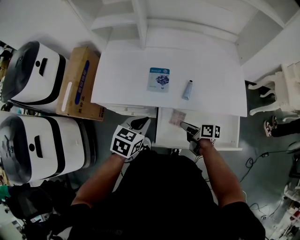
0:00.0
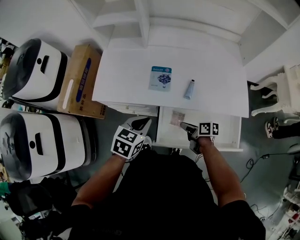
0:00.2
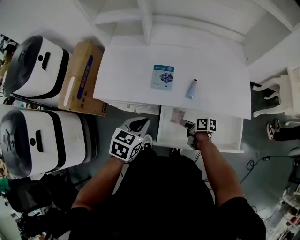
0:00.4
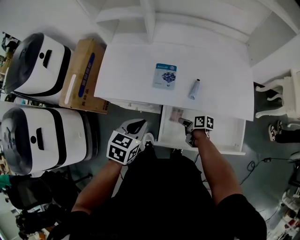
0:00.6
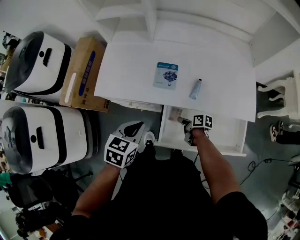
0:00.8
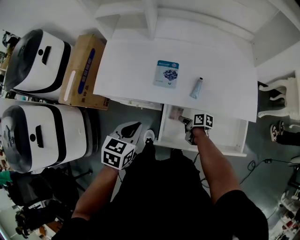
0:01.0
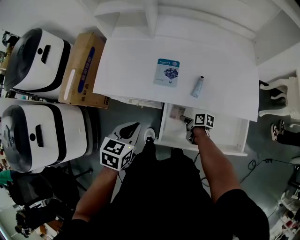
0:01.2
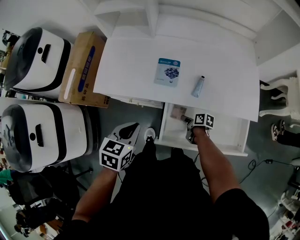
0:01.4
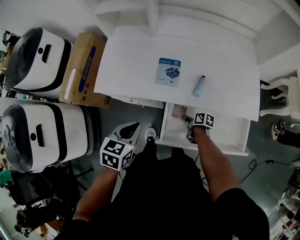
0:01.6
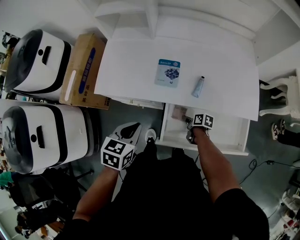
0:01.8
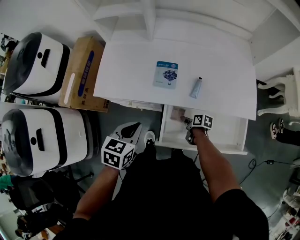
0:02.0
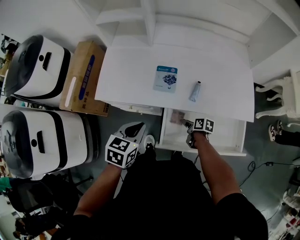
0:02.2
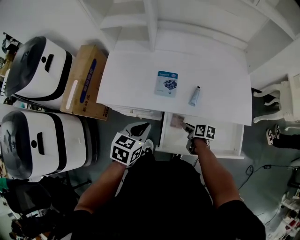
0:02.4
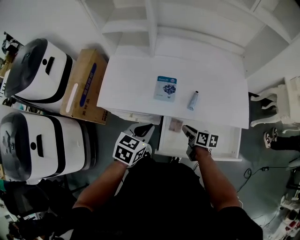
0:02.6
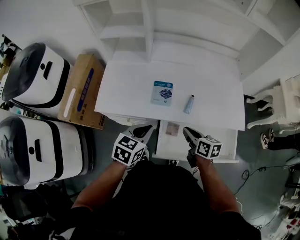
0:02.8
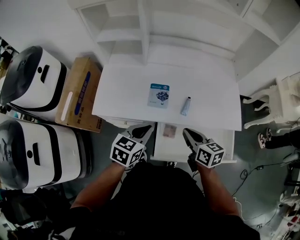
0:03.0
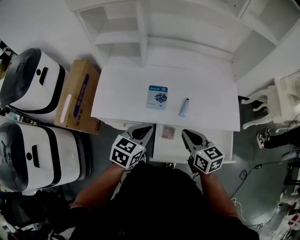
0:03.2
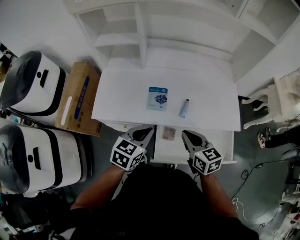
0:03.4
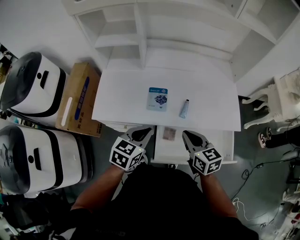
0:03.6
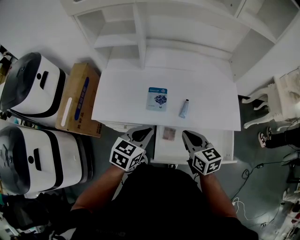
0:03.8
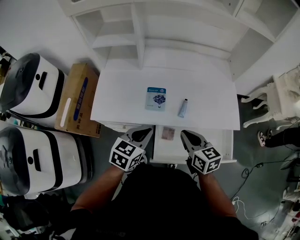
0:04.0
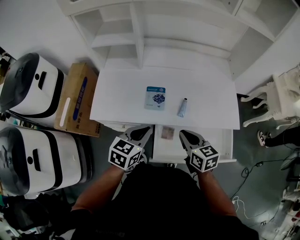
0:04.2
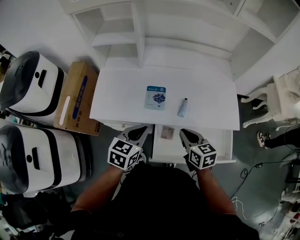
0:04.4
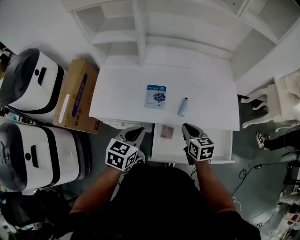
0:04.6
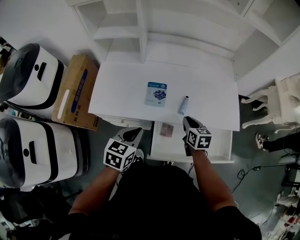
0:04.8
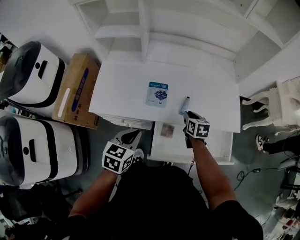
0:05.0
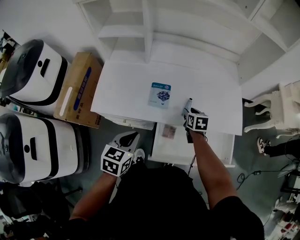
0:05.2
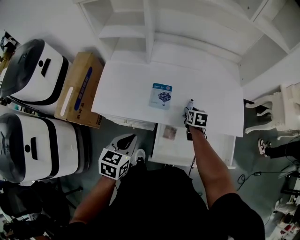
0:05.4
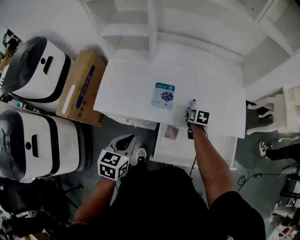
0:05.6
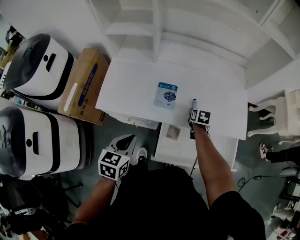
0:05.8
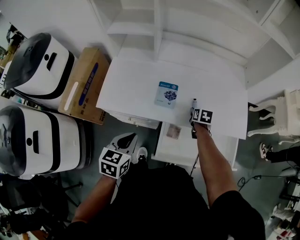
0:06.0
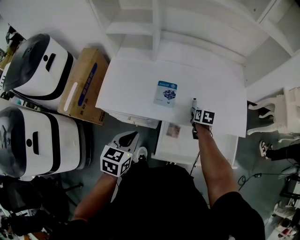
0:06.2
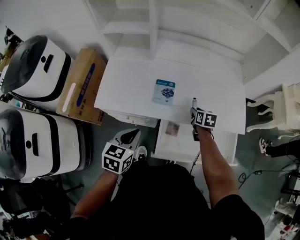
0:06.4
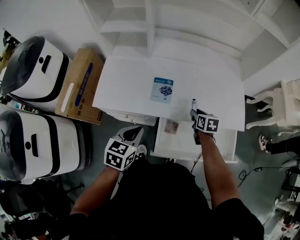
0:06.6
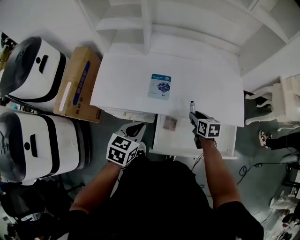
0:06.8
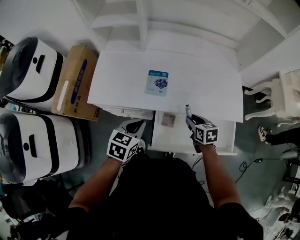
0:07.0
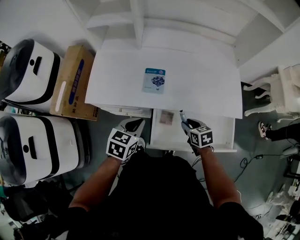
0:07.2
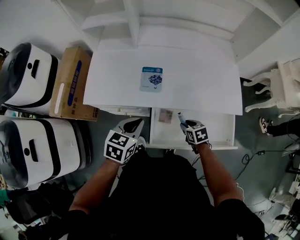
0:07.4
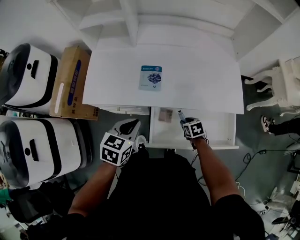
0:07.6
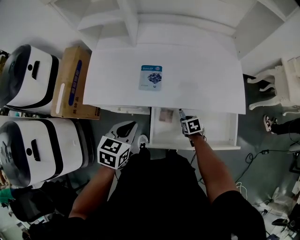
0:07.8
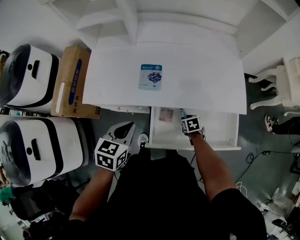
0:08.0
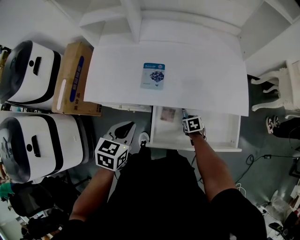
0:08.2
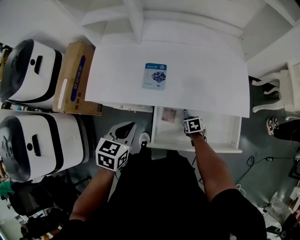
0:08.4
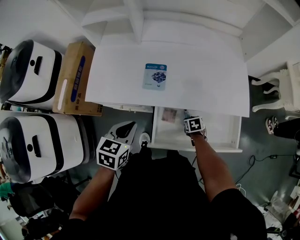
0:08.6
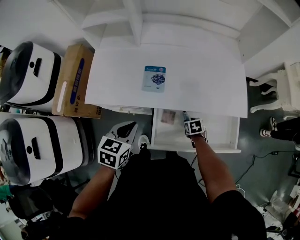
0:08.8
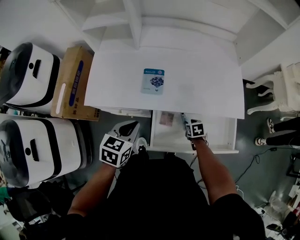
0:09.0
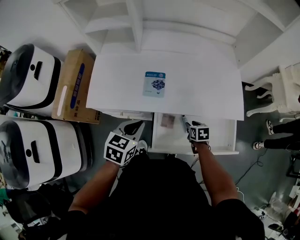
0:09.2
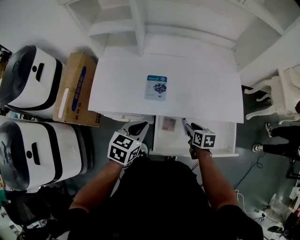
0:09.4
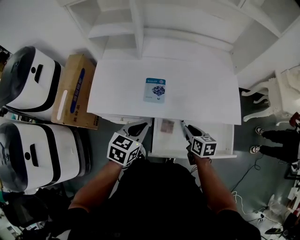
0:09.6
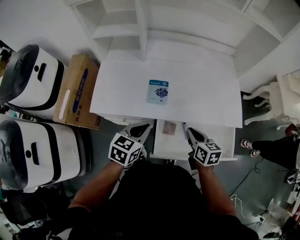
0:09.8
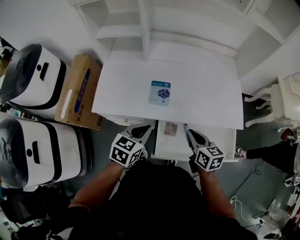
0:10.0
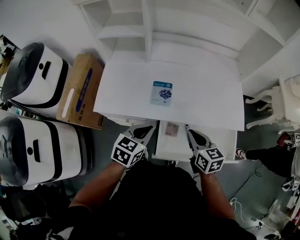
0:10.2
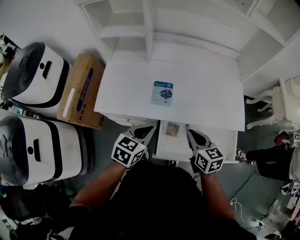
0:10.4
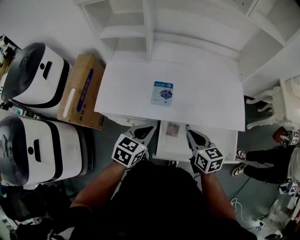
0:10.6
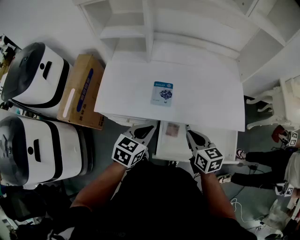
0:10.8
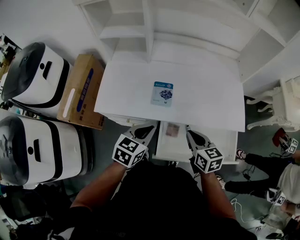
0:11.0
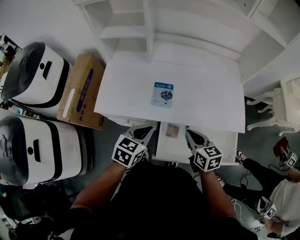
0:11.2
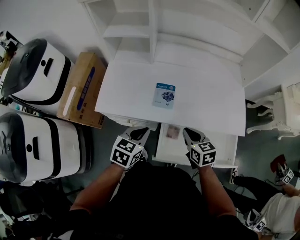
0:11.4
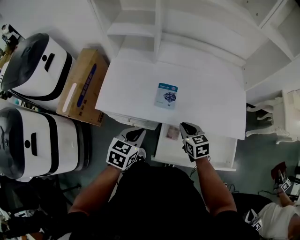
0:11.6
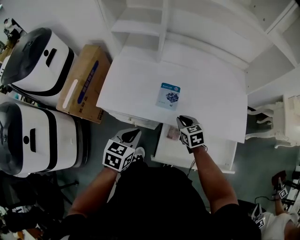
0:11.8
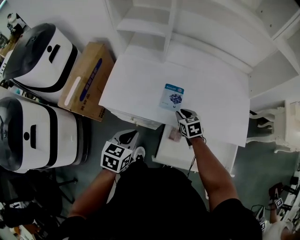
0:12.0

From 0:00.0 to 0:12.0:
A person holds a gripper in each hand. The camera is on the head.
From 0:00.0 to 0:01.6: The left gripper shifts about 5 cm to the left. Meanwhile the right gripper travels downward by about 15 cm.
From 0:01.6 to 0:03.0: The right gripper shifts about 30 cm upward, and changes its angle by some 40 degrees. The left gripper shifts roughly 5 cm to the right.
From 0:03.0 to 0:04.4: The grippers make only small movements.
From 0:04.4 to 0:06.0: The left gripper moves to the left and backward, some 10 cm; the right gripper moves downward and forward, some 25 cm, rotates about 30 degrees, and opens up.
From 0:06.0 to 0:07.6: The right gripper is displaced backward by some 15 cm, and turns by approximately 20 degrees, while the left gripper shifts some 5 cm to the right.
From 0:09.0 to 0:10.4: The right gripper shifts about 25 cm upward, tips its fingers upward by roughly 40 degrees, and closes up.
From 0:10.4 to 0:12.0: The left gripper moves to the left, approximately 10 cm; the right gripper travels forward, downward and to the left by approximately 20 cm, and changes its angle by roughly 30 degrees.

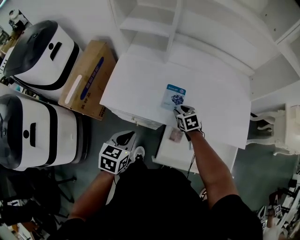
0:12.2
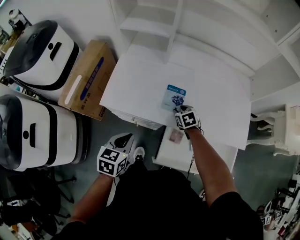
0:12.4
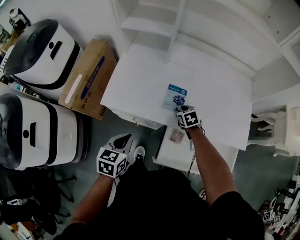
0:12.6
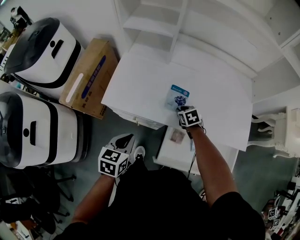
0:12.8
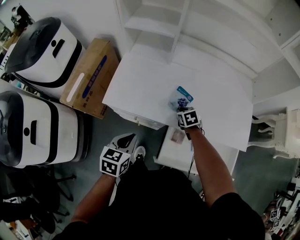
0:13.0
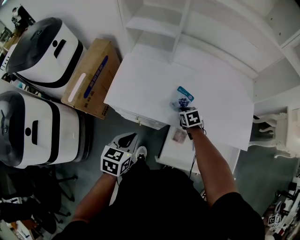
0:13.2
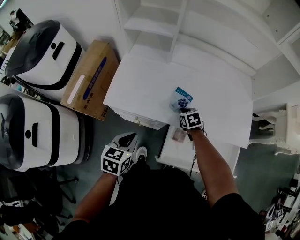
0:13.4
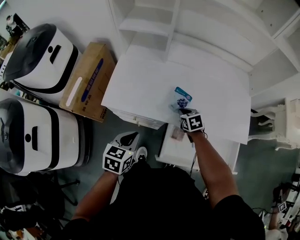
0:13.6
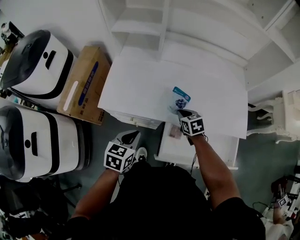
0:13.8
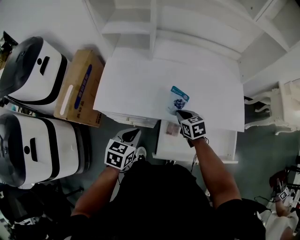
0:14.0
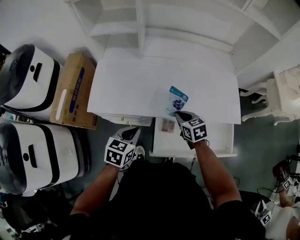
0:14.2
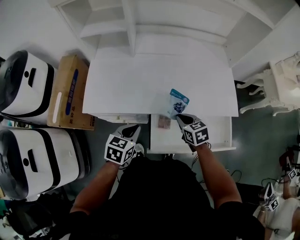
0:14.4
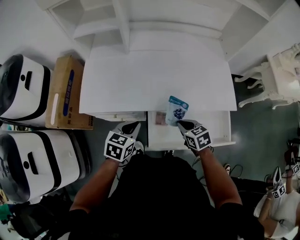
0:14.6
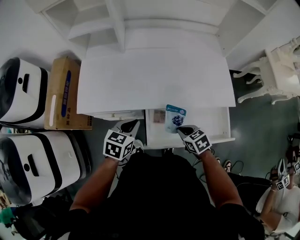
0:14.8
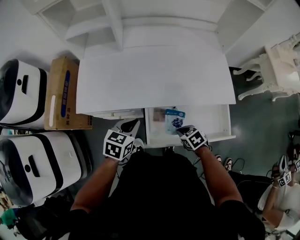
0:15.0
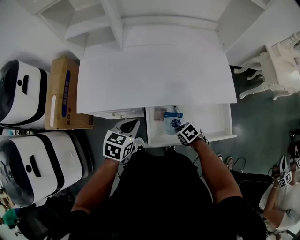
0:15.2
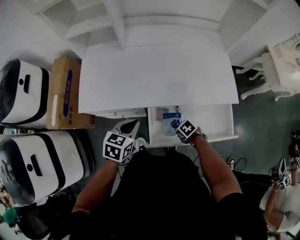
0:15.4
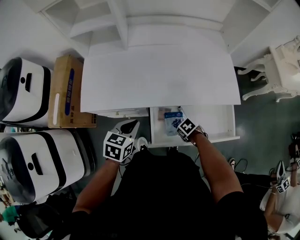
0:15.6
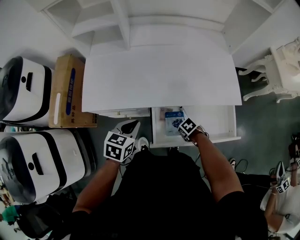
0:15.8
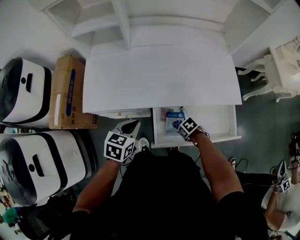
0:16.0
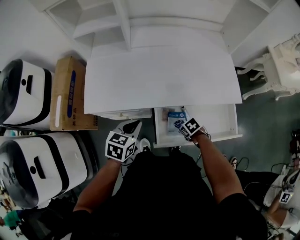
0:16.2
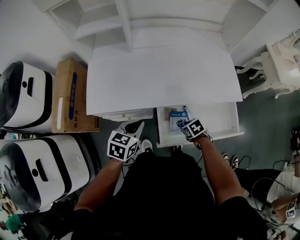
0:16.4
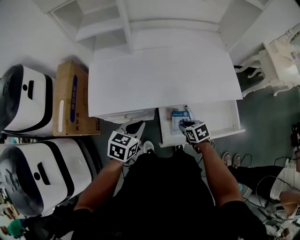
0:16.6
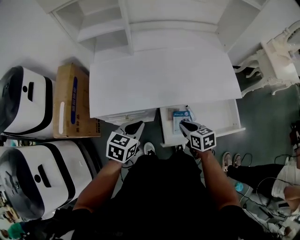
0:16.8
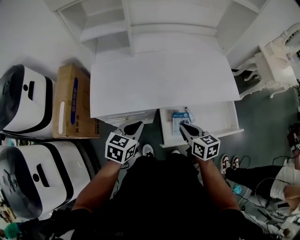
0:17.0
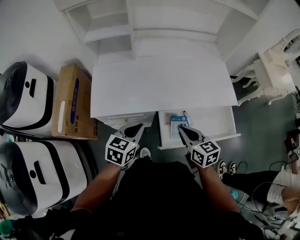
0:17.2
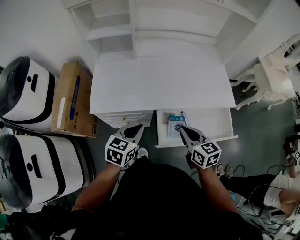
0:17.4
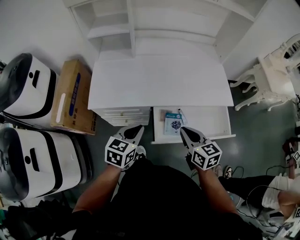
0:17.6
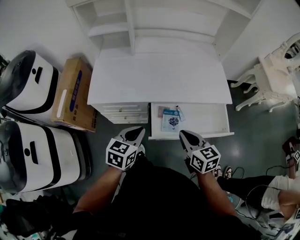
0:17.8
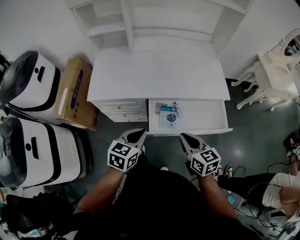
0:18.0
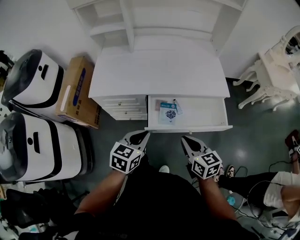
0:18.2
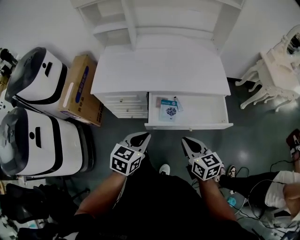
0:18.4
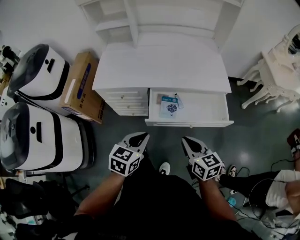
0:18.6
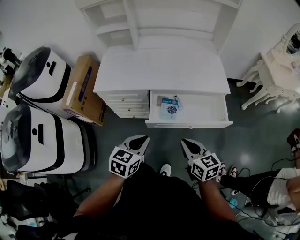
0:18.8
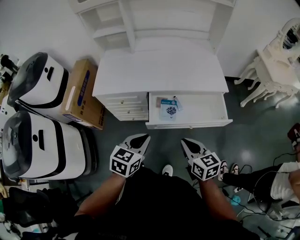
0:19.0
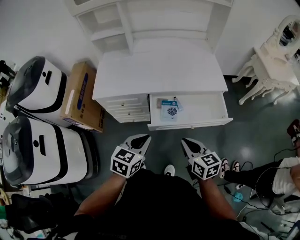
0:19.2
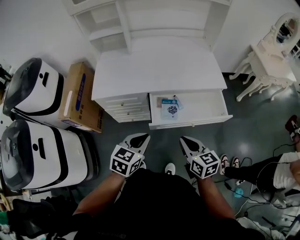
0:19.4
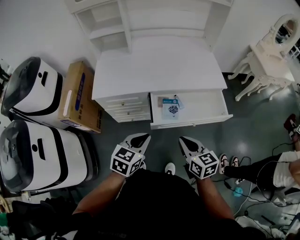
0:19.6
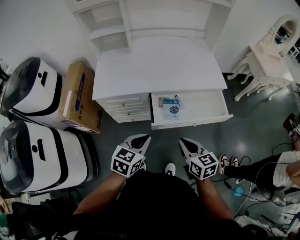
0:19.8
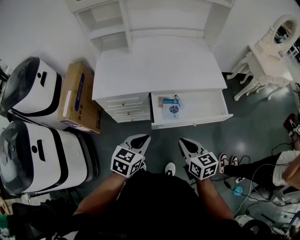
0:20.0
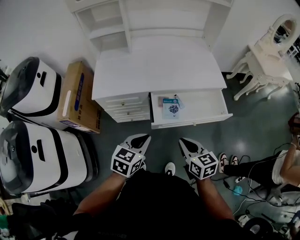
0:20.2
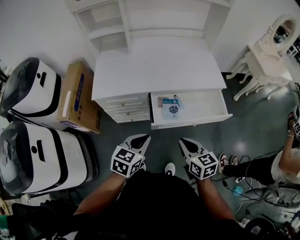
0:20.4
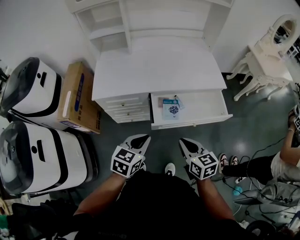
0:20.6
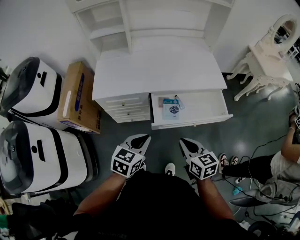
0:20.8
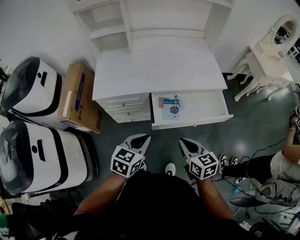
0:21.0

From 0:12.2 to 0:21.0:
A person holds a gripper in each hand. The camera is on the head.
From 0:12.2 to 0:13.6: The right gripper closes up.
From 0:13.6 to 0:15.2: The left gripper is displaced to the right by some 10 cm. The right gripper heads backward and to the right, covering approximately 25 cm, and changes its angle by about 20 degrees.
From 0:15.2 to 0:16.6: The left gripper shifts by approximately 5 cm. Meanwhile the right gripper ends up some 5 cm from where it was, and rotates roughly 20 degrees.
From 0:16.6 to 0:18.0: The right gripper travels upward and backward by some 25 cm, tips its fingers upward by roughly 30 degrees, and closes up. The left gripper moves backward, to the right and upward, approximately 15 cm.
From 0:18.0 to 0:19.6: The two grippers go about 10 cm backward.
From 0:19.6 to 0:21.0: The grippers stay close to where they were, moving slightly.

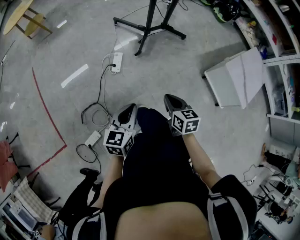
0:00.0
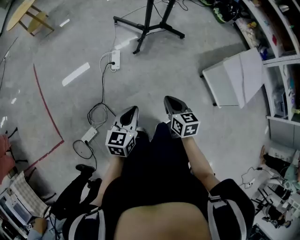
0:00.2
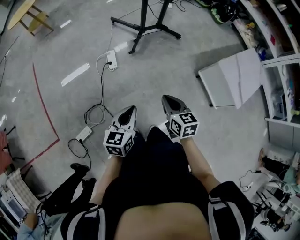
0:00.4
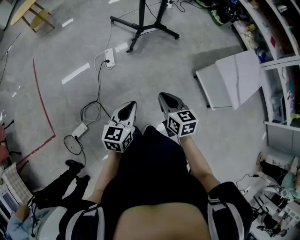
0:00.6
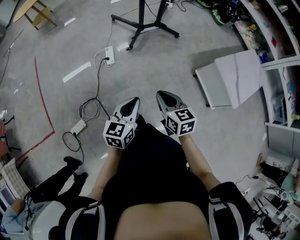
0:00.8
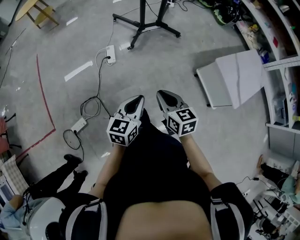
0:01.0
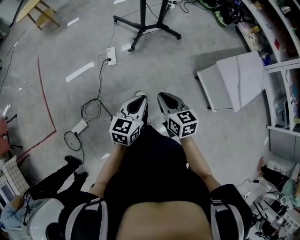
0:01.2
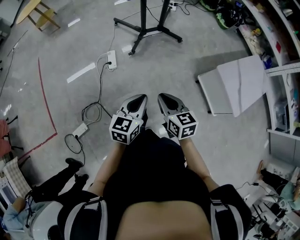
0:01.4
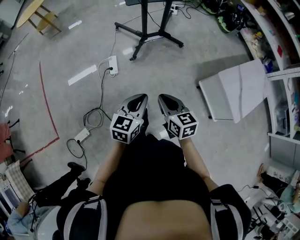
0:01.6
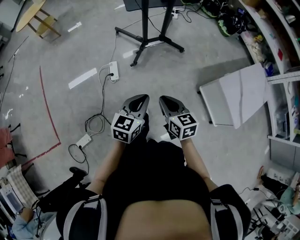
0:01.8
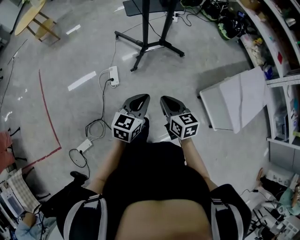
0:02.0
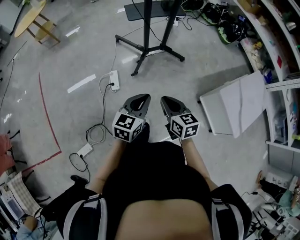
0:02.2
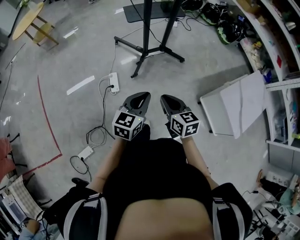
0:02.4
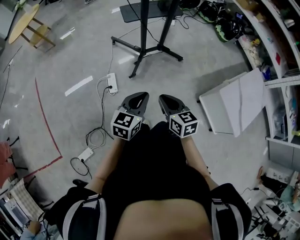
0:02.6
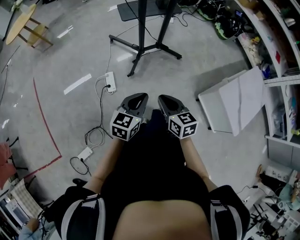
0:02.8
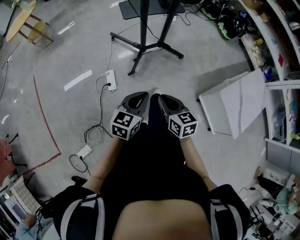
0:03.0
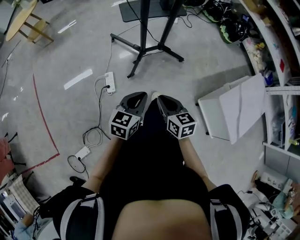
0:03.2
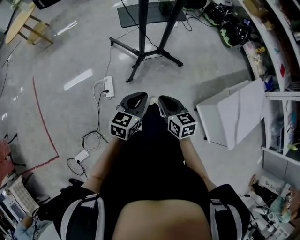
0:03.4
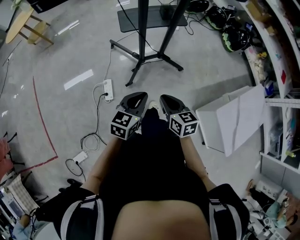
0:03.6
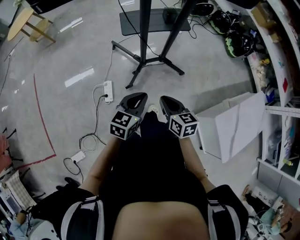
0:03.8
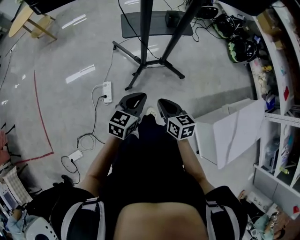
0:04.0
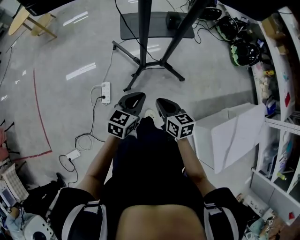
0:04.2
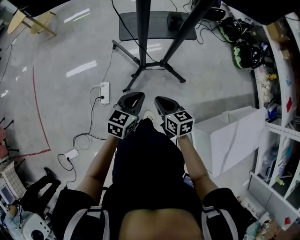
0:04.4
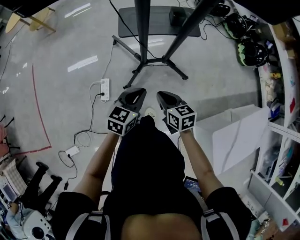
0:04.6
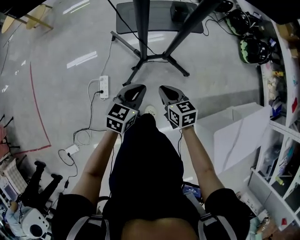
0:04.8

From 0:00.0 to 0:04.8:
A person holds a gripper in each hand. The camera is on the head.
From 0:00.0 to 0:01.6: The right gripper goes roughly 15 cm to the right and upward, while the left gripper travels to the right by approximately 20 cm.
From 0:01.6 to 0:03.2: Both grippers travel together forward, some 25 cm.
From 0:03.2 to 0:04.8: Both grippers move forward, some 30 cm.
